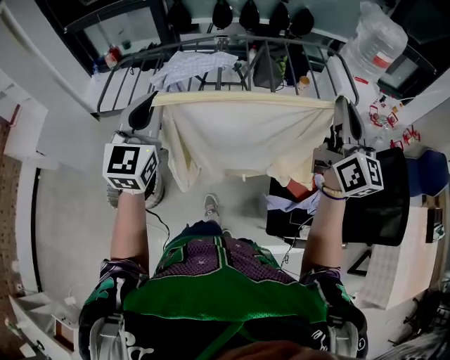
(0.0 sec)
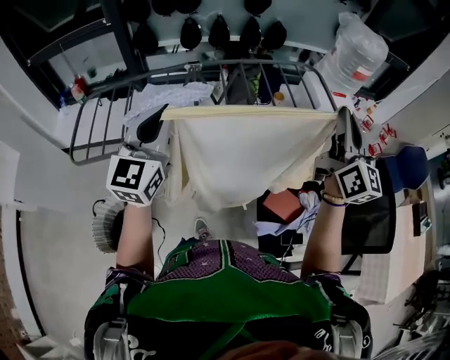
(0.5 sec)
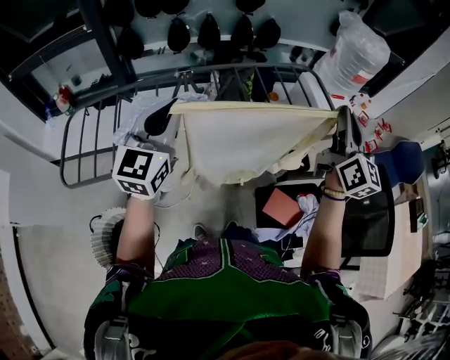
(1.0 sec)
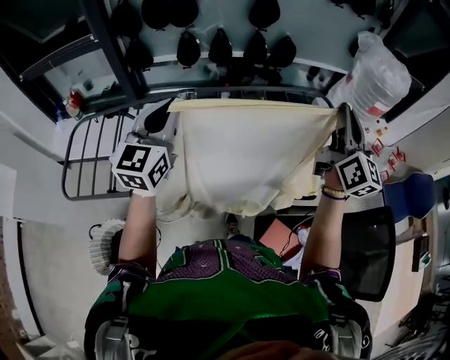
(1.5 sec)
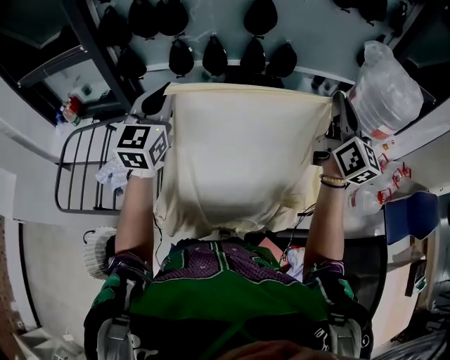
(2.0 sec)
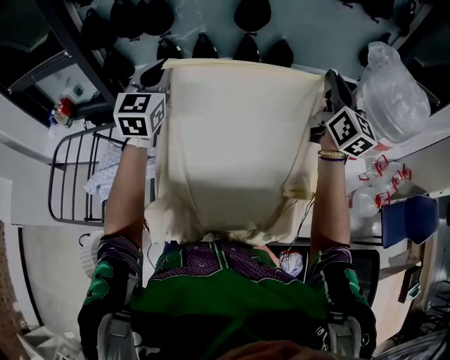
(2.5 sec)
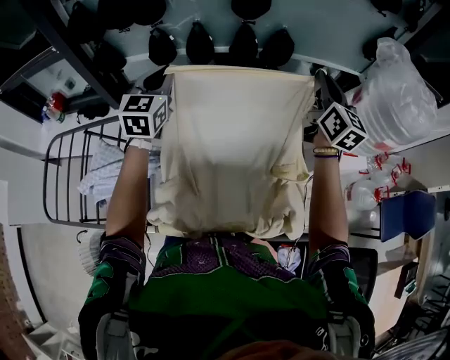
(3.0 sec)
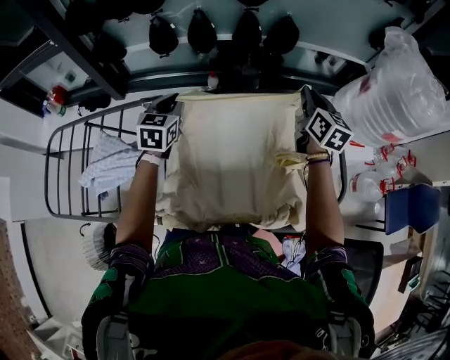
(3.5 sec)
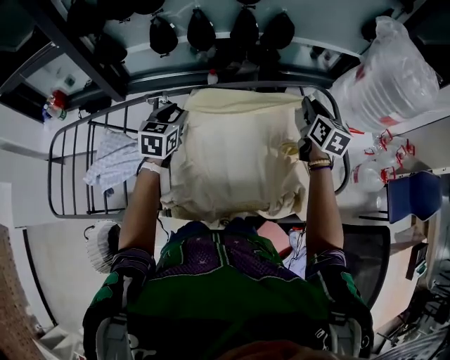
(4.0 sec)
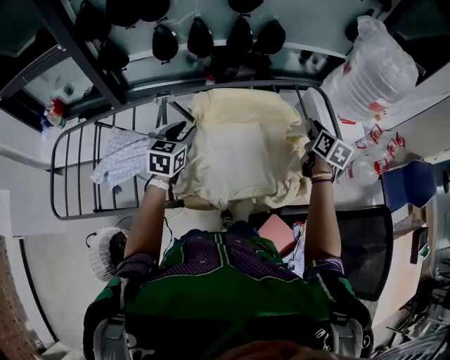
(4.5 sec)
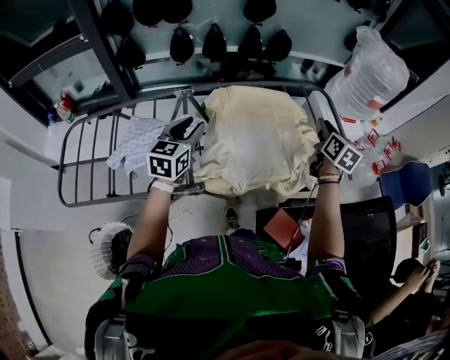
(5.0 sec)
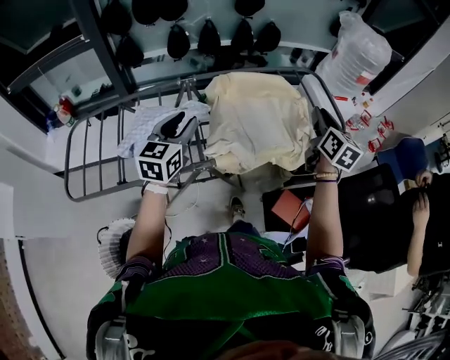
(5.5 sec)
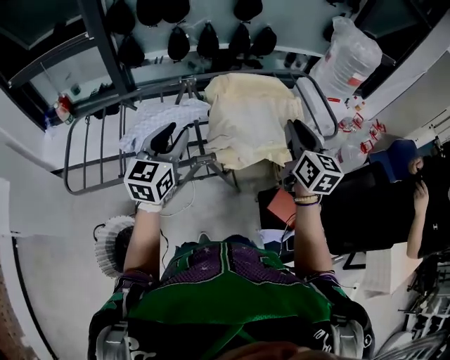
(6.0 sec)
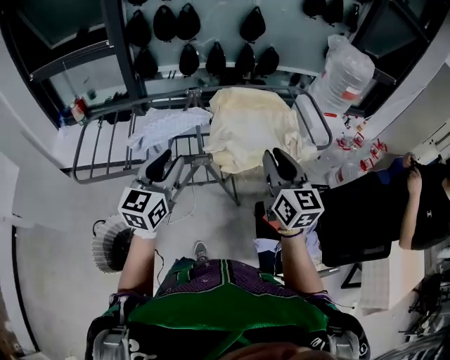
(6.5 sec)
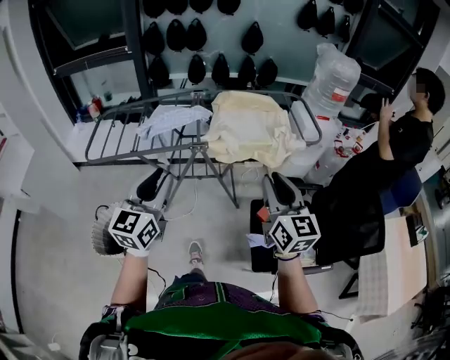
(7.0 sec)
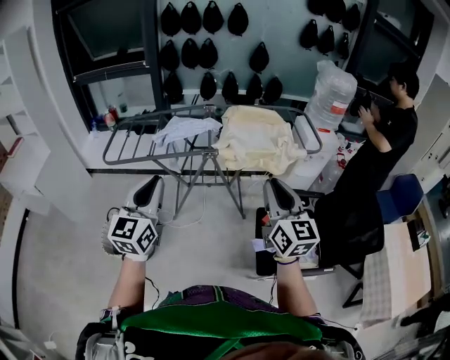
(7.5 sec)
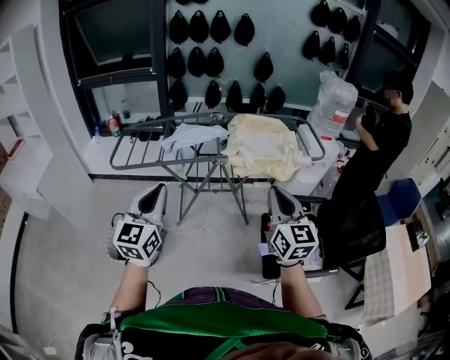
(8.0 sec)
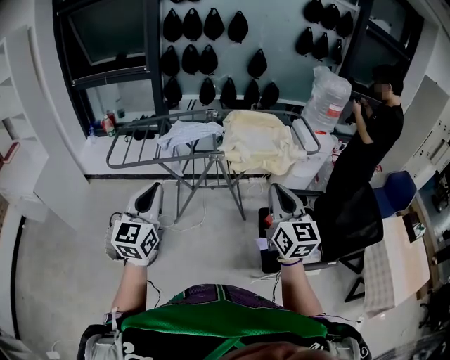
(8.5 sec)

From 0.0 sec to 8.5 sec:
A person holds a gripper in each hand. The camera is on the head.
From 0.0 sec to 2.0 sec: The pair of grippers is taken forward, some 50 cm.
From 2.0 sec to 4.0 sec: The left gripper heads downward, covering some 25 cm, points its fingers roughly 30 degrees further downward, and opens its fingers, while the right gripper shifts some 25 cm downward and forward, and tips its fingers downward by roughly 40 degrees.
From 4.0 sec to 6.5 sec: The pair of grippers is taken backward, some 50 cm. The right gripper rotates approximately 20 degrees, while the left gripper swivels some 30 degrees.
From 6.5 sec to 8.5 sec: The grippers both shift backward by approximately 30 cm. The left gripper closes its fingers.

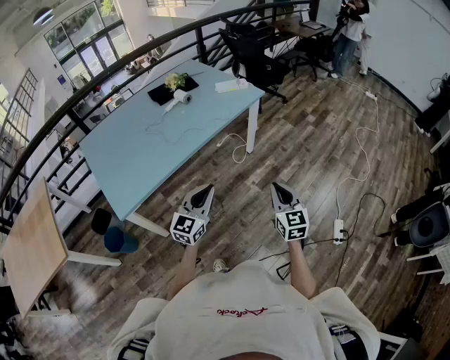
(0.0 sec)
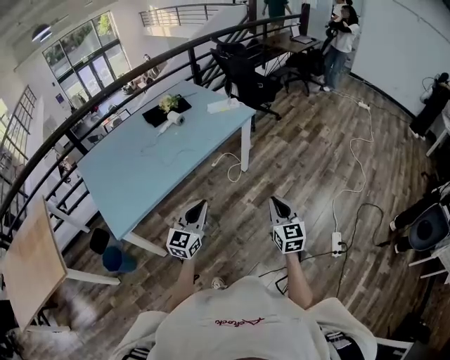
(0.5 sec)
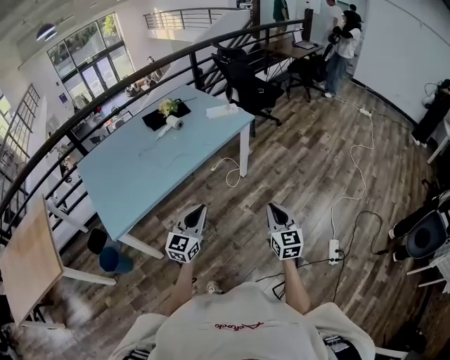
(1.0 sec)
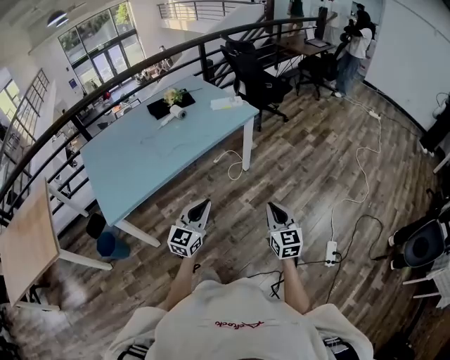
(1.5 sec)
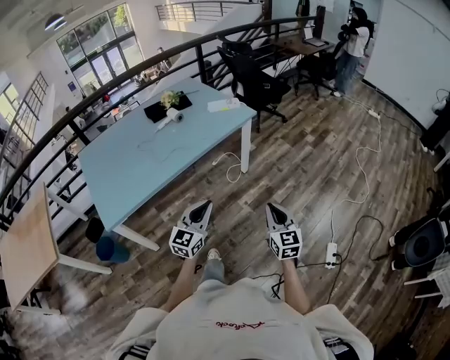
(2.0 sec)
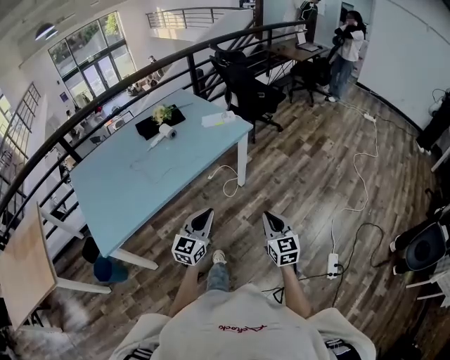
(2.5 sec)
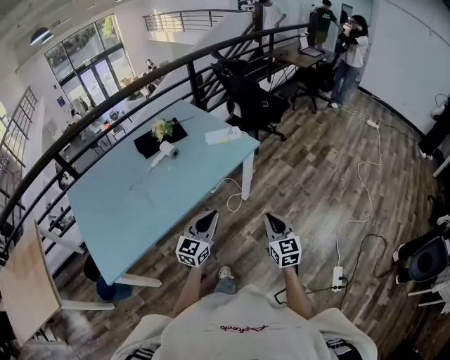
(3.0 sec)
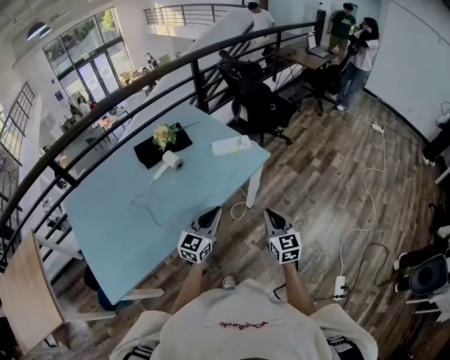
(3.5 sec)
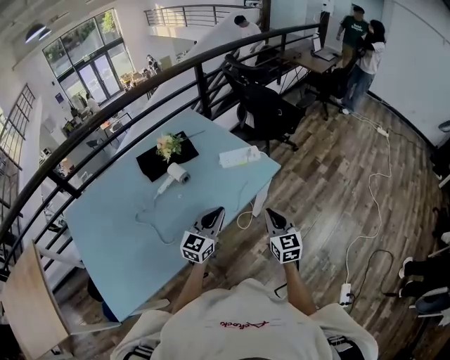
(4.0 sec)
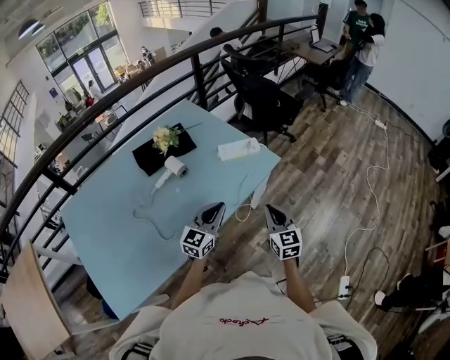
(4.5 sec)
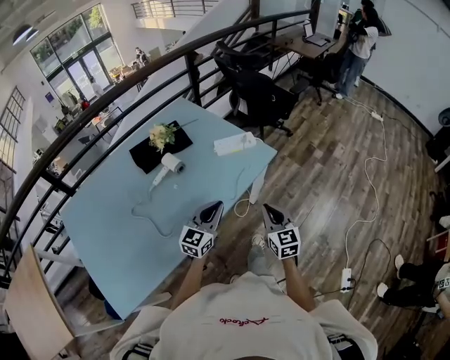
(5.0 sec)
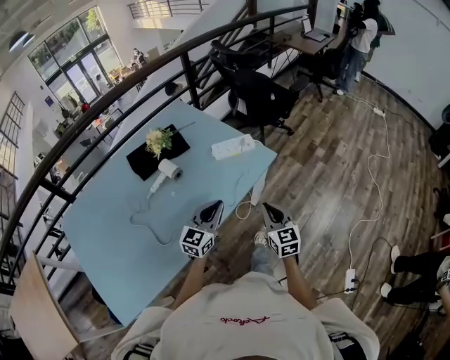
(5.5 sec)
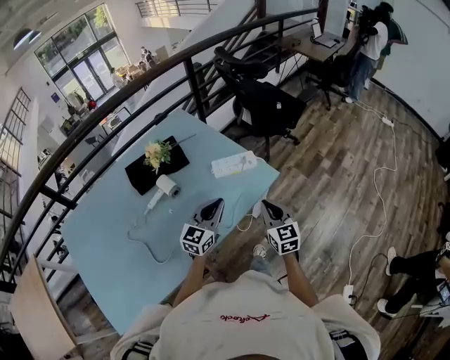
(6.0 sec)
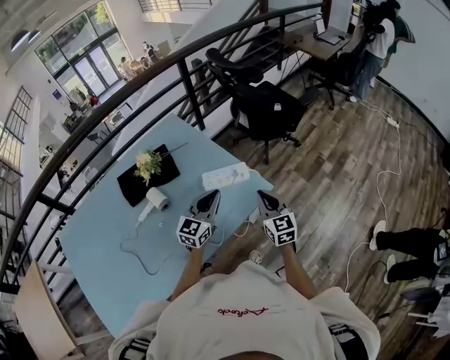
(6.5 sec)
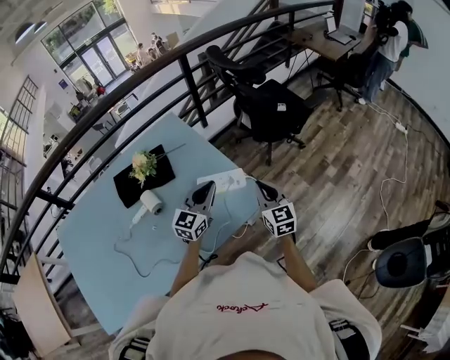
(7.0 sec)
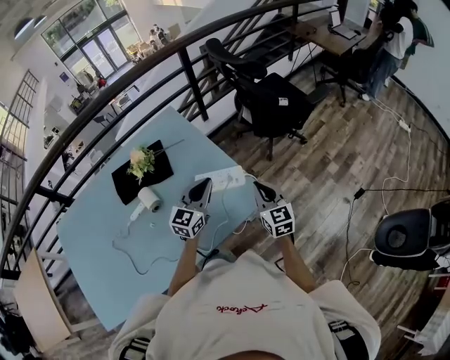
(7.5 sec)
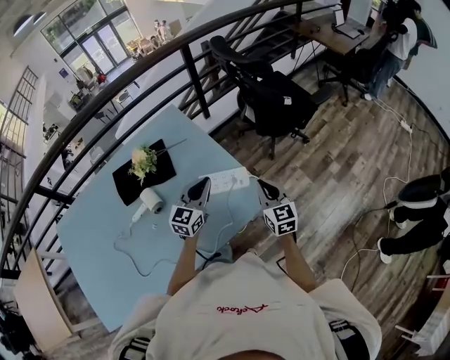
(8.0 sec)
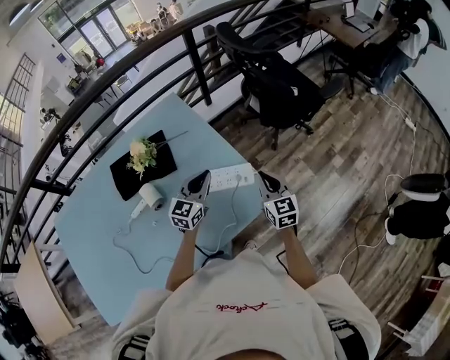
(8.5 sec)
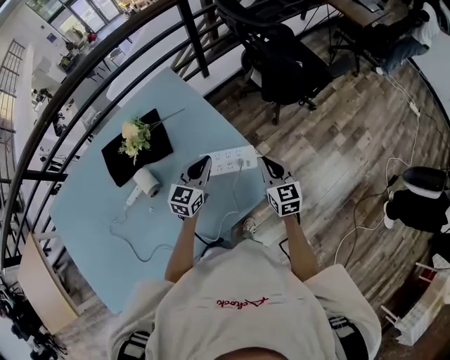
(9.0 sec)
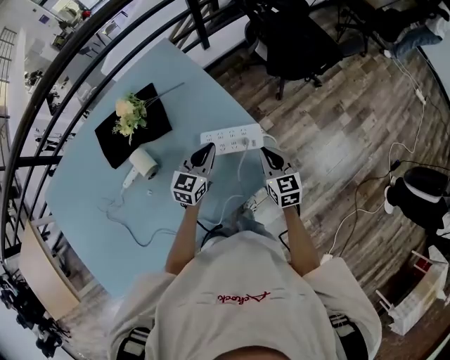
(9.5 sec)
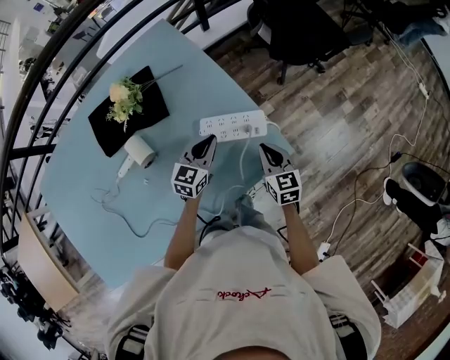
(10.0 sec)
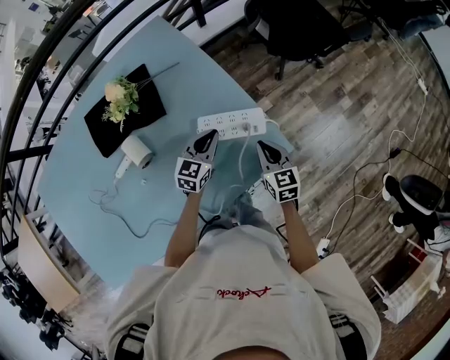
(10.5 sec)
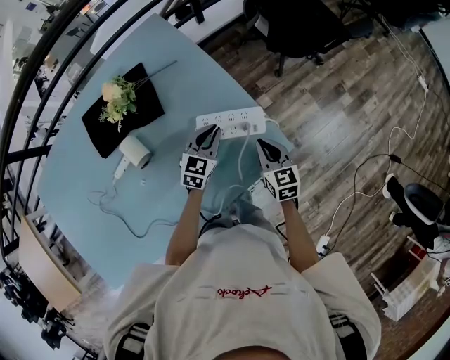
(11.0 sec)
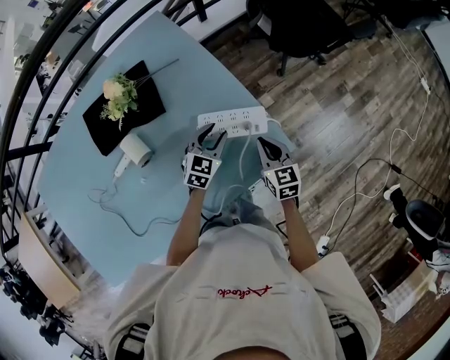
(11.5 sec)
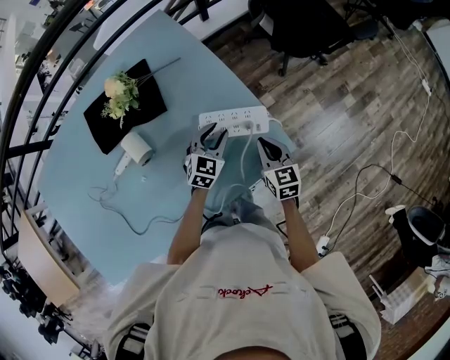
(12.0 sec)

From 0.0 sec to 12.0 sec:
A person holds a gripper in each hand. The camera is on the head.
From 0.0 sec to 2.0 sec: The two grippers go some 10 cm to the right.
From 2.0 sec to 4.0 sec: The two grippers travel together, forward, roughly 50 cm.
From 4.0 sec to 6.0 sec: The grippers both shift forward by roughly 15 cm.
From 6.0 sec to 8.0 sec: The grippers both shift forward by approximately 20 cm.
From 8.0 sec to 10.0 sec: Both grippers travel together downward, about 15 cm.
From 10.0 sec to 12.0 sec: The left gripper moves approximately 5 cm, and opens.

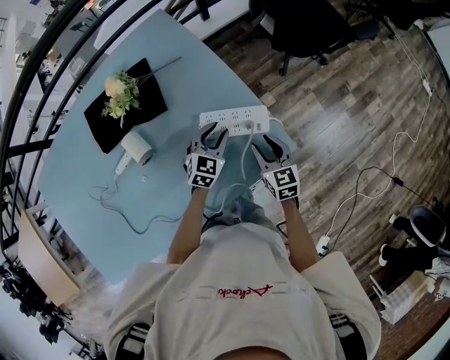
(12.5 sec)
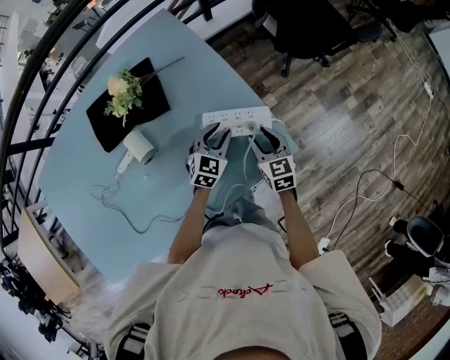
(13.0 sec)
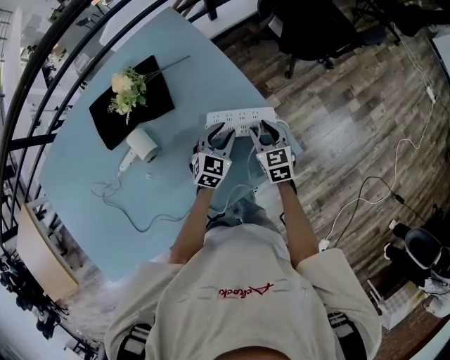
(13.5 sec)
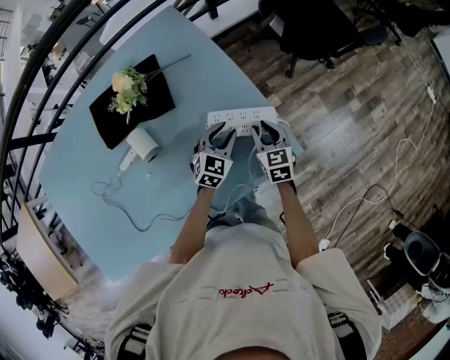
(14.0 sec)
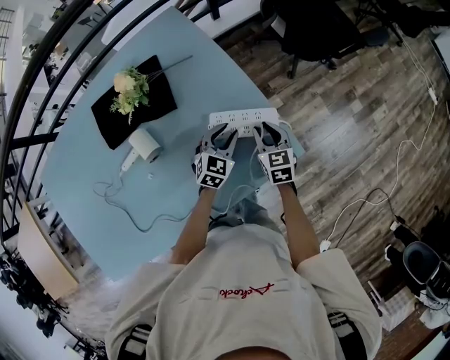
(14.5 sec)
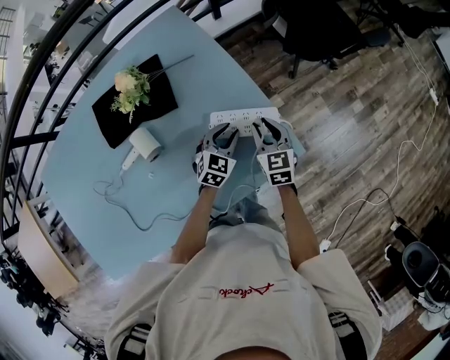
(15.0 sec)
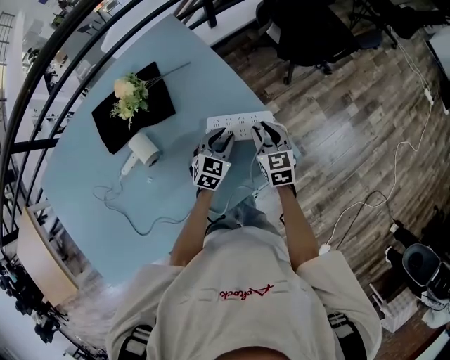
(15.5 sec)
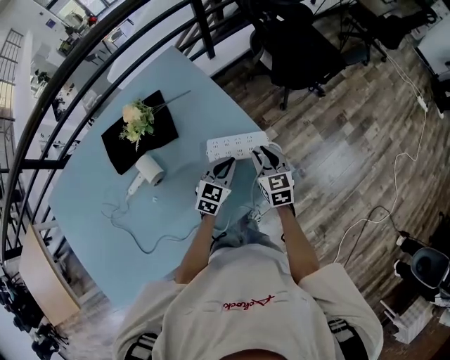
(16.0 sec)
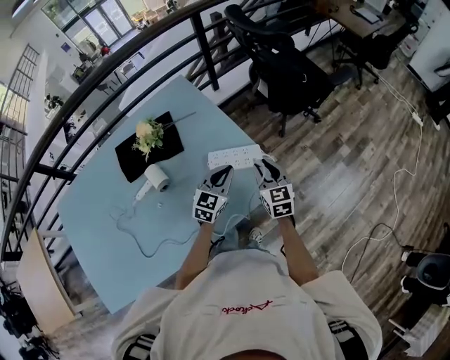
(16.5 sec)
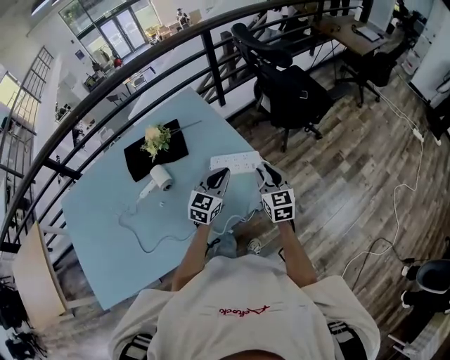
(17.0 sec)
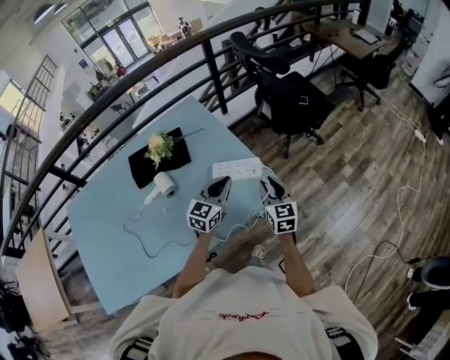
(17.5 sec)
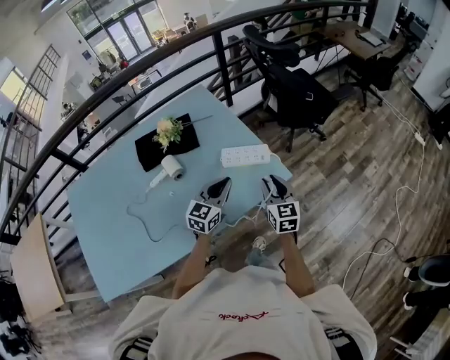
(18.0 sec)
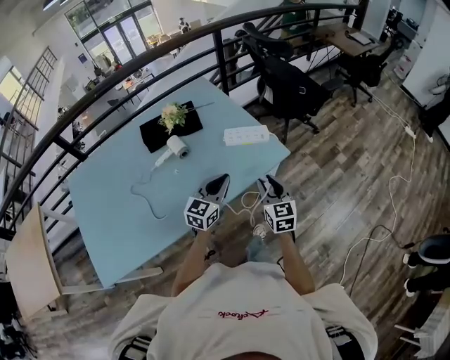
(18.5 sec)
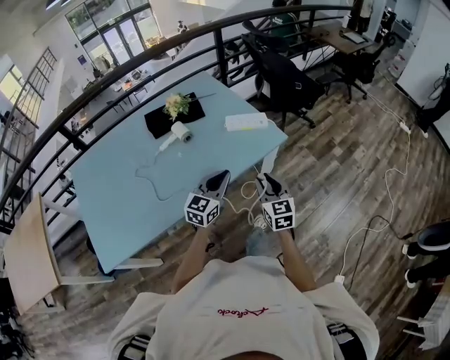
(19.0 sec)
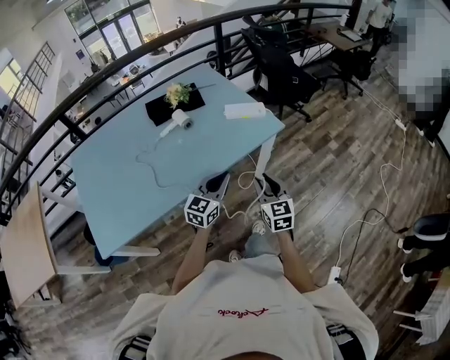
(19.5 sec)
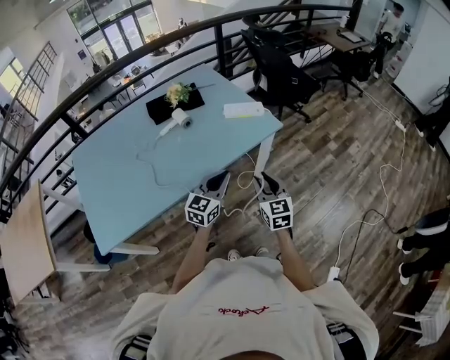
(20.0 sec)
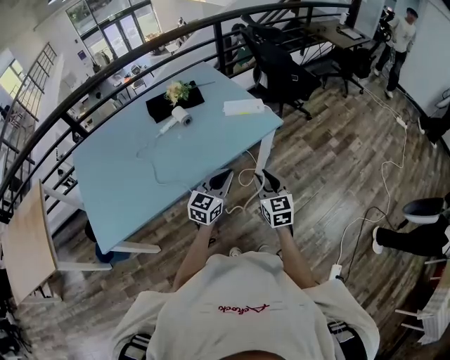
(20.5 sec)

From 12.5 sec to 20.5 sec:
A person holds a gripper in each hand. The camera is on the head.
From 12.5 sec to 14.5 sec: The right gripper shifts some 5 cm forward.
From 14.5 sec to 16.5 sec: The two grippers go approximately 15 cm upward and backward. The left gripper closes.
From 16.5 sec to 18.5 sec: The grippers both shift backward by about 25 cm.
From 18.5 sec to 20.5 sec: The two grippers go approximately 20 cm backward.
